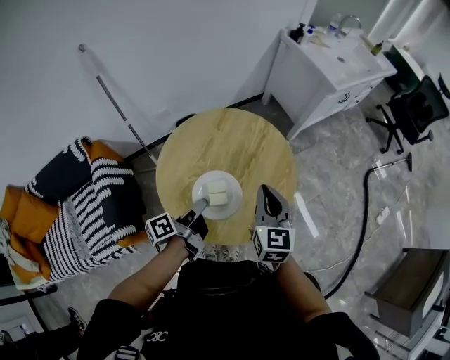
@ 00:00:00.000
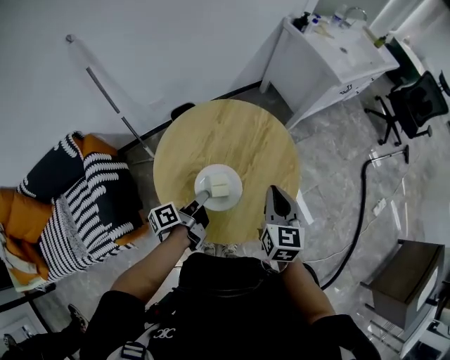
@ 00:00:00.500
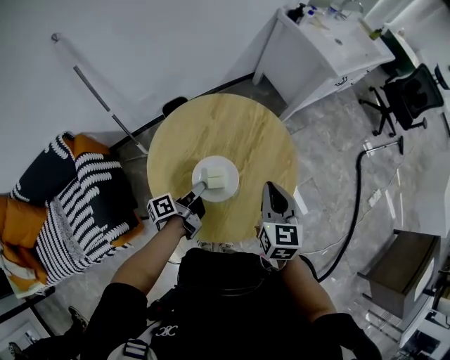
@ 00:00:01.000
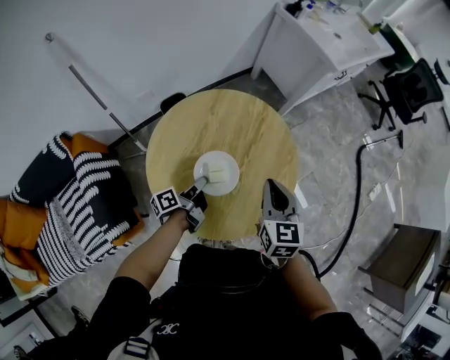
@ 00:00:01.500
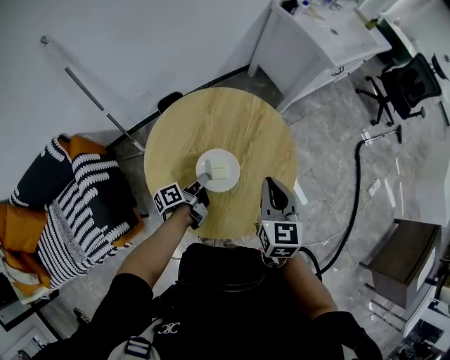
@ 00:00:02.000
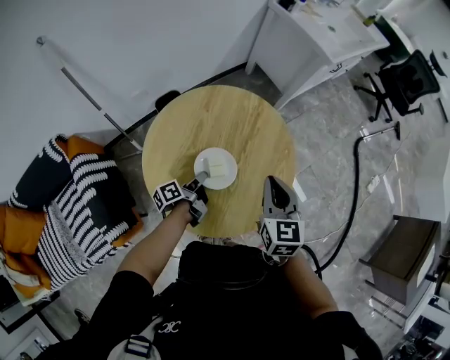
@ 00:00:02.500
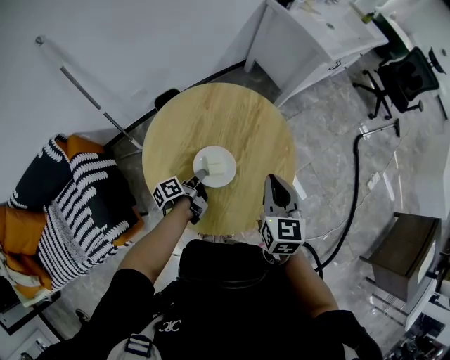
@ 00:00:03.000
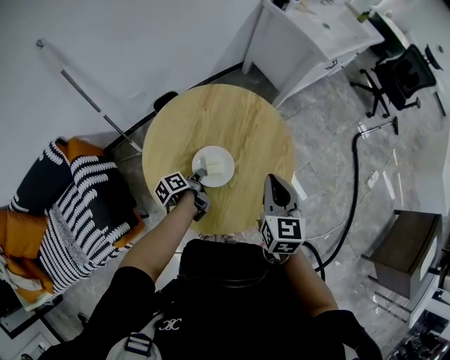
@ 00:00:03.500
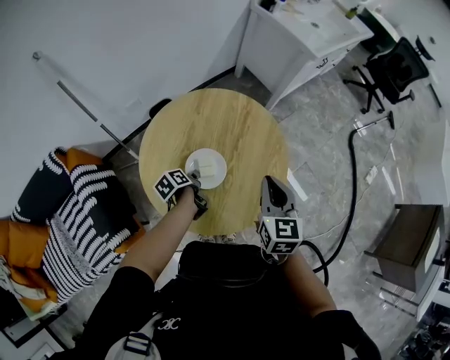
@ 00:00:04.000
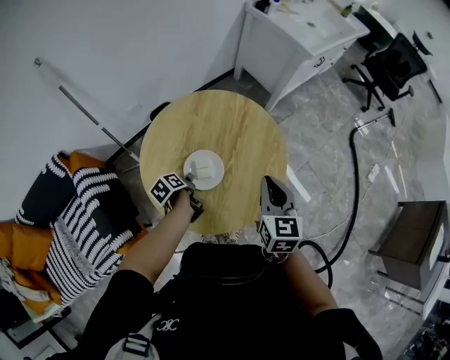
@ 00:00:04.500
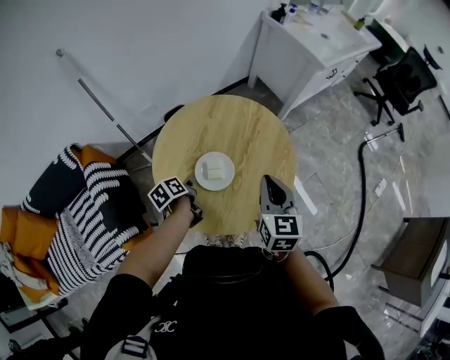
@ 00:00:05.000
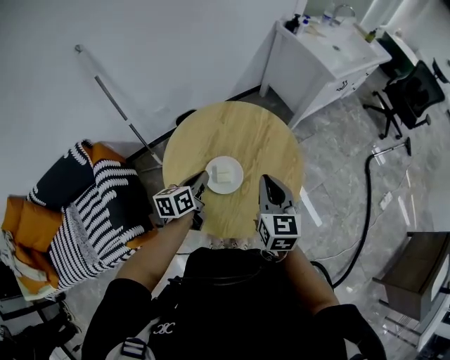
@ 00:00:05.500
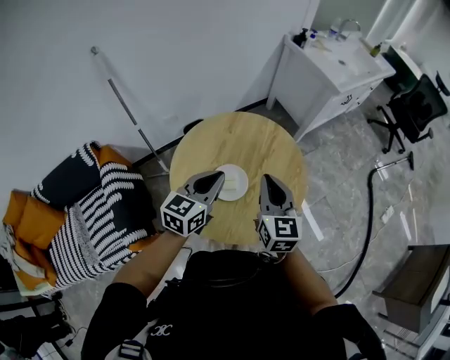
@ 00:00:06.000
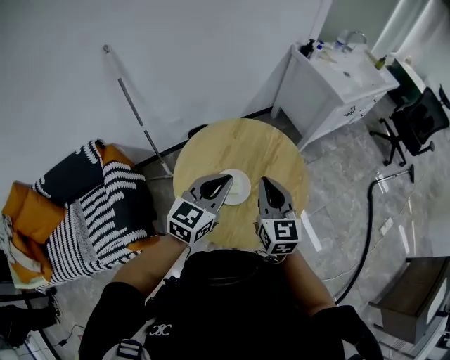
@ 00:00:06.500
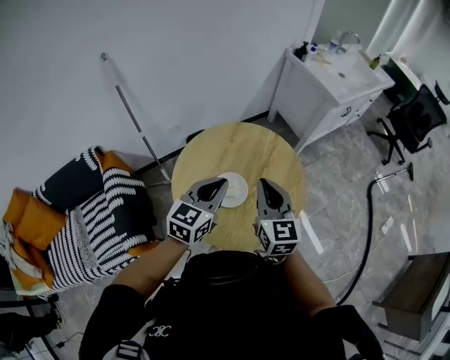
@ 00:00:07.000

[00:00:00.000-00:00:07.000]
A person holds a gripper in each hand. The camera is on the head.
00:00:05.000 to 00:00:07.000: The right gripper moves some 10 cm.

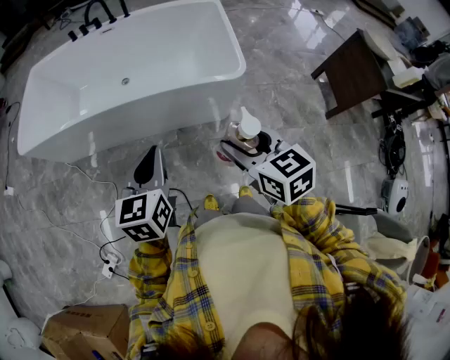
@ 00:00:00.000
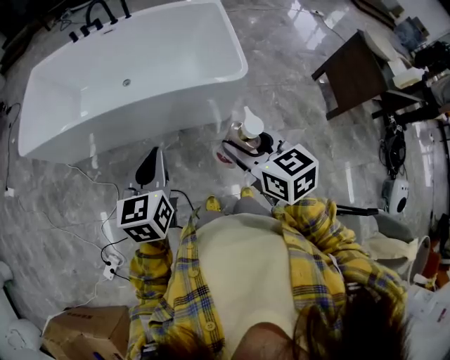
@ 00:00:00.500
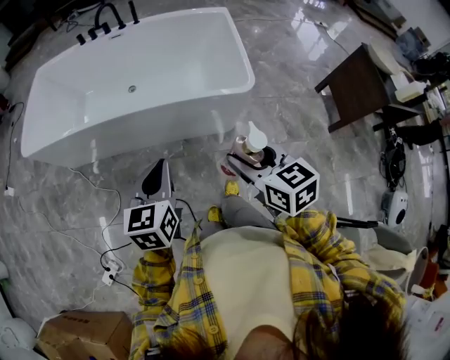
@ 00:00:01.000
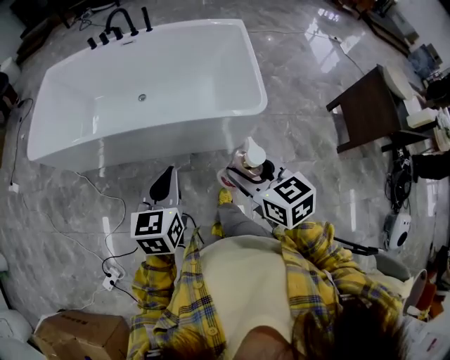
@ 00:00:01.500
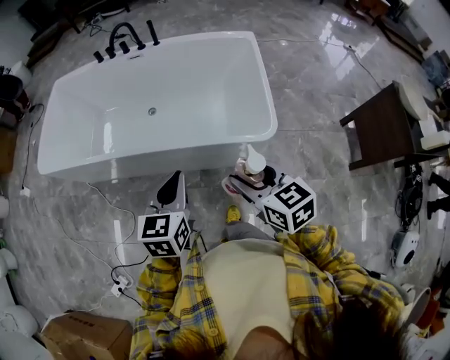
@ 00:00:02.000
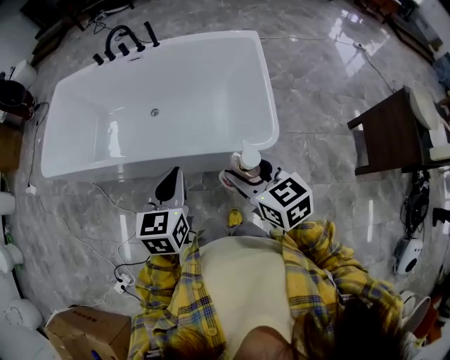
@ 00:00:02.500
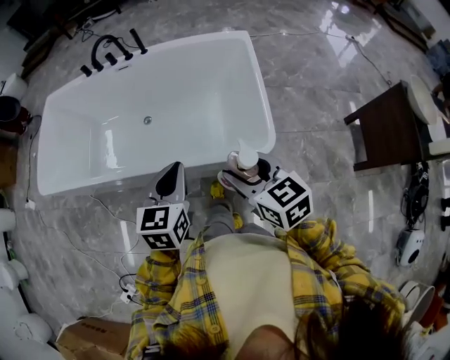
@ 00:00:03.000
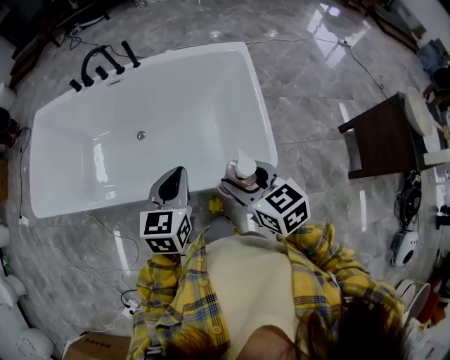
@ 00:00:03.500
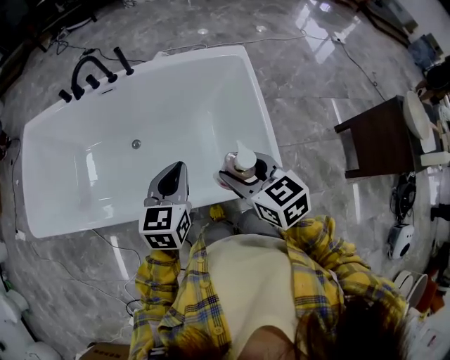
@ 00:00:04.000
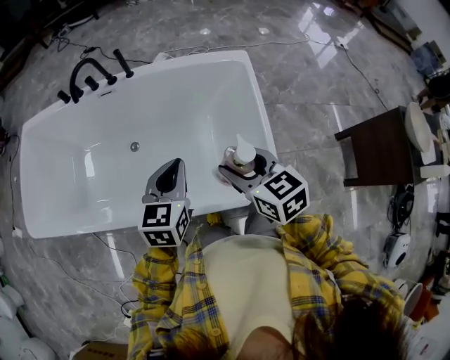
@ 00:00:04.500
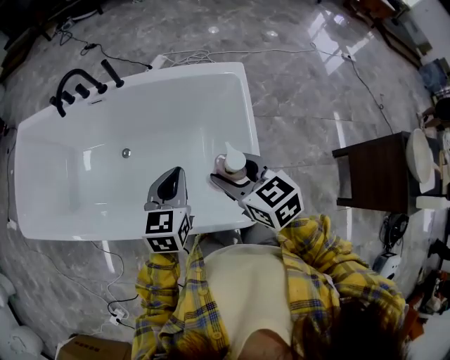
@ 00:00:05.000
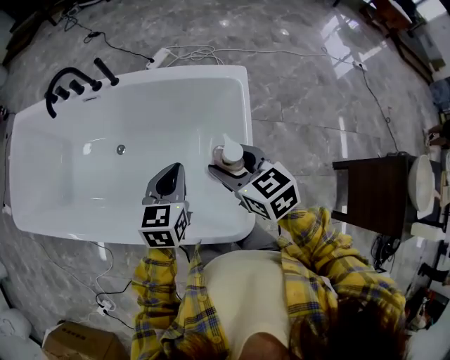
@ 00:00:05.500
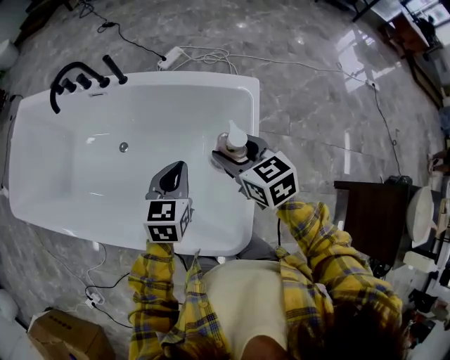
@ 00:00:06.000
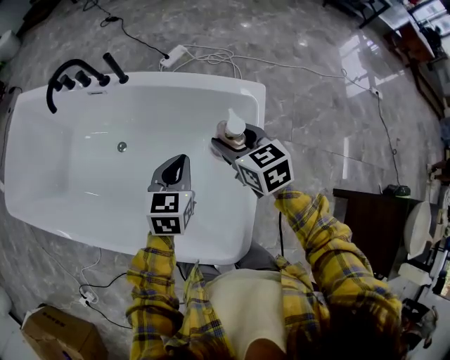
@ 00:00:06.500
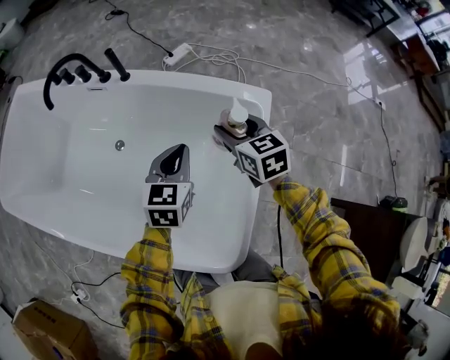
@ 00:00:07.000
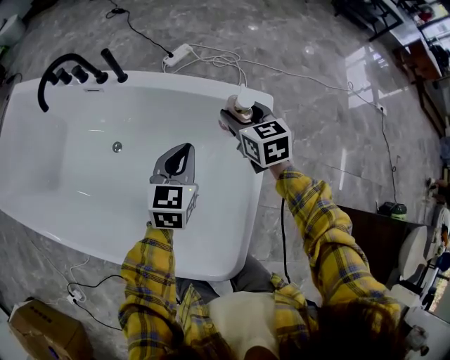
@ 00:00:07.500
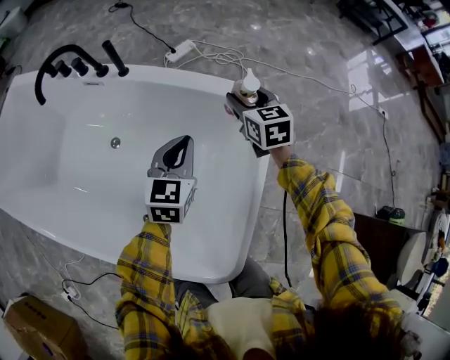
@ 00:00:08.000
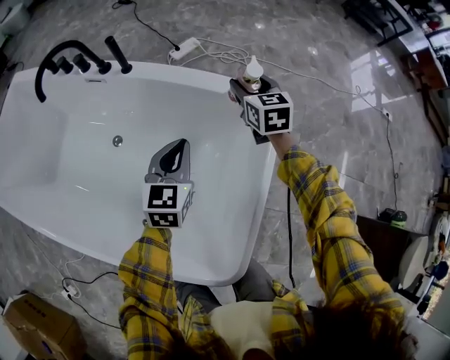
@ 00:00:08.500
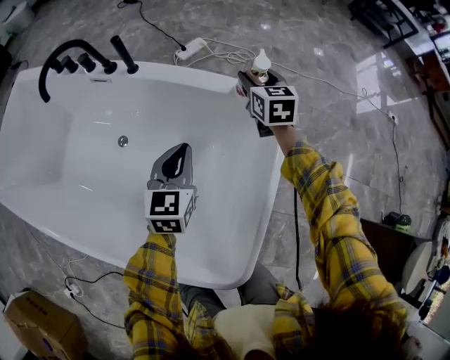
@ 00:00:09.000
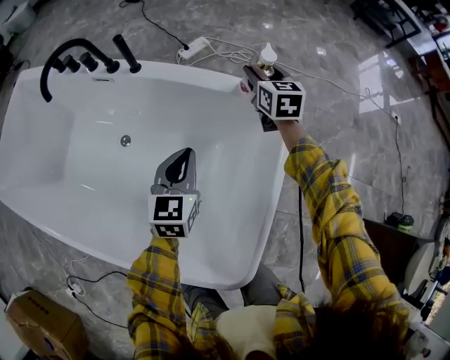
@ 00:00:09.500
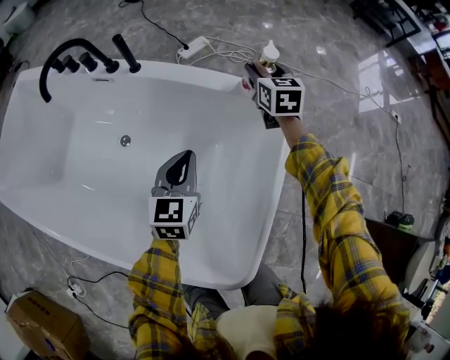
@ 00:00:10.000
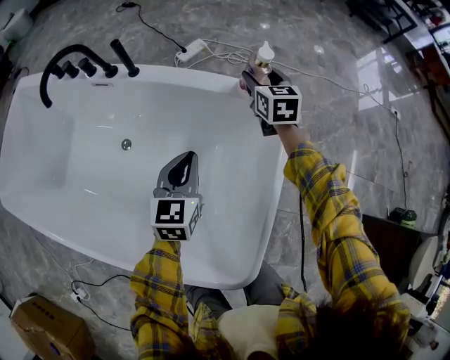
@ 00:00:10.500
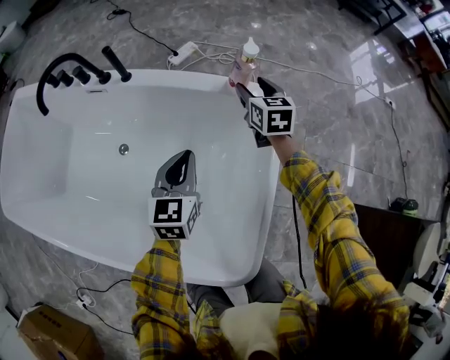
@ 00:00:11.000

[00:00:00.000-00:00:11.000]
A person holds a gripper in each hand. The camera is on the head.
00:00:00.000 to 00:00:02.000: The grippers both shift forward by roughly 15 cm.
00:00:02.000 to 00:00:03.500: The left gripper shifts some 20 cm forward and to the right. Meanwhile the right gripper shifts about 20 cm forward.
00:00:03.500 to 00:00:05.500: Both grippers travel together forward and to the right, approximately 25 cm.
00:00:05.500 to 00:00:07.500: The left gripper is displaced forward and downward by approximately 15 cm. The right gripper moves forward, roughly 25 cm.
00:00:07.500 to 00:00:09.000: The right gripper heads forward, covering about 10 cm, while the left gripper shifts by some 5 cm.
00:00:09.000 to 00:00:11.000: The grippers stay close to where they were, moving slightly.

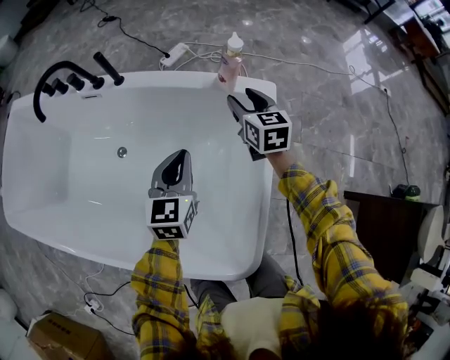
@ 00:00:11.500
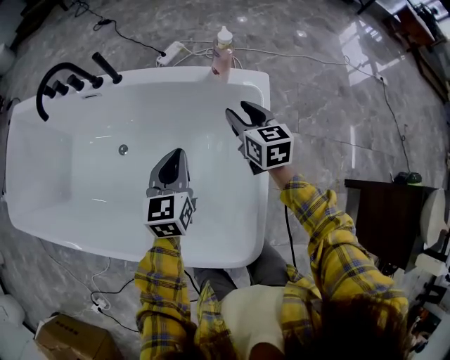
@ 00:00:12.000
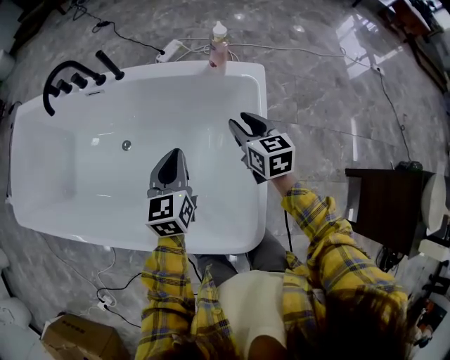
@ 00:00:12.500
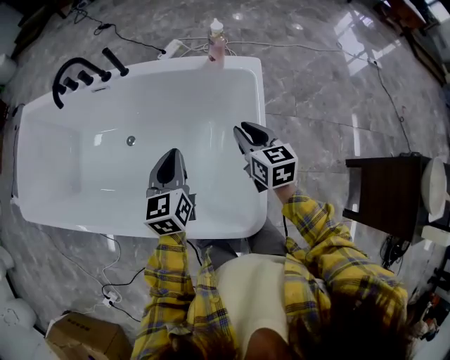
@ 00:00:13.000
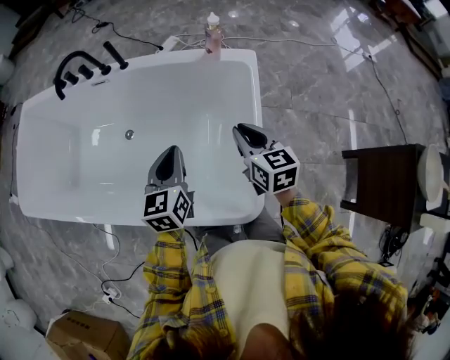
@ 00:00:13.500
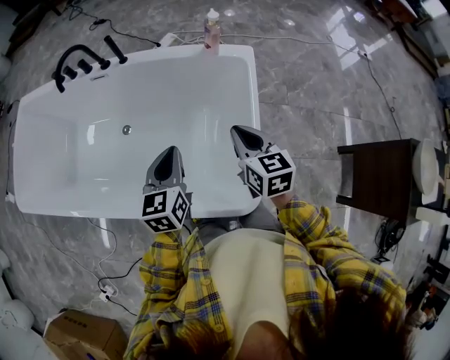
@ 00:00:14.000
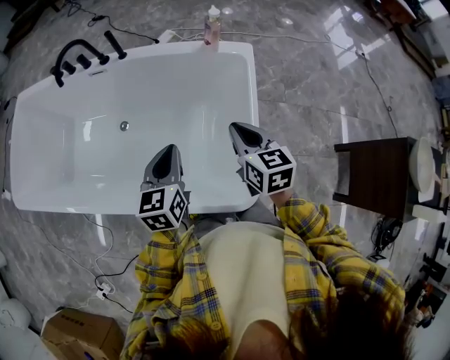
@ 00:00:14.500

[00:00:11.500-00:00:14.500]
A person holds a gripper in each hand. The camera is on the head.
00:00:11.500 to 00:00:13.000: The left gripper moves backward and upward, some 10 cm. The right gripper heads backward, covering approximately 20 cm, and closes its fingers.
00:00:13.000 to 00:00:14.500: The left gripper heads backward, covering approximately 5 cm. Meanwhile the right gripper moves backward and upward, some 10 cm.

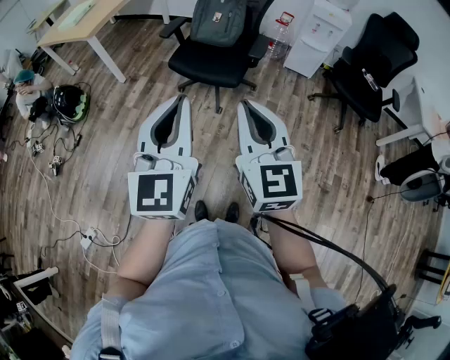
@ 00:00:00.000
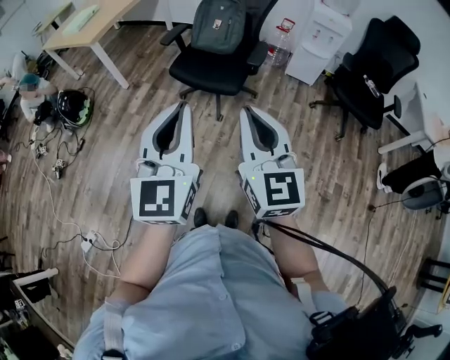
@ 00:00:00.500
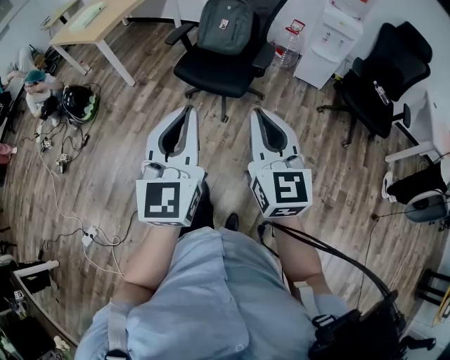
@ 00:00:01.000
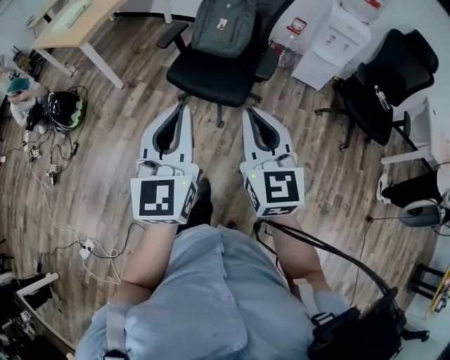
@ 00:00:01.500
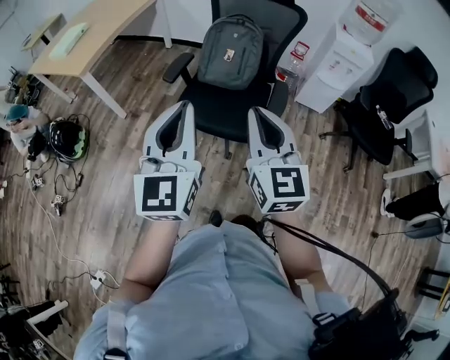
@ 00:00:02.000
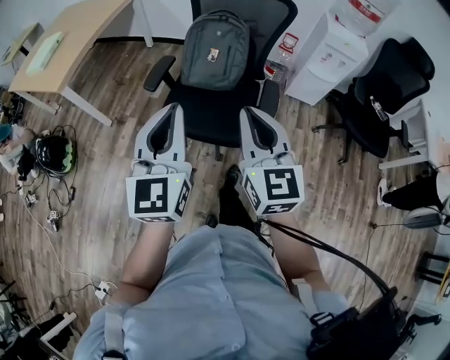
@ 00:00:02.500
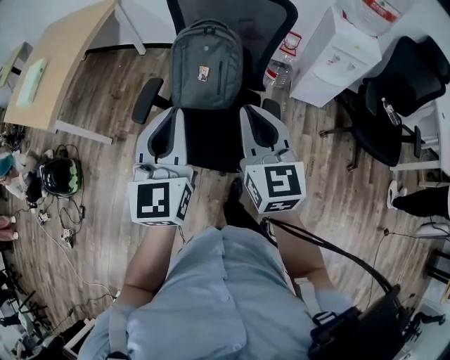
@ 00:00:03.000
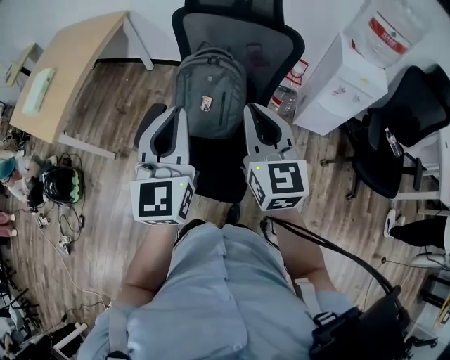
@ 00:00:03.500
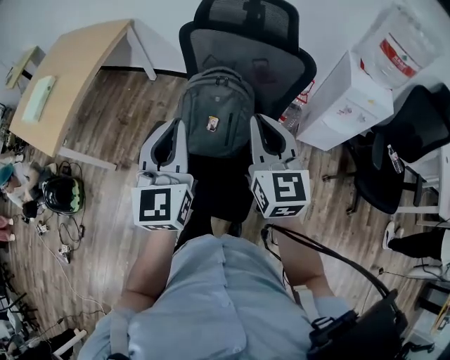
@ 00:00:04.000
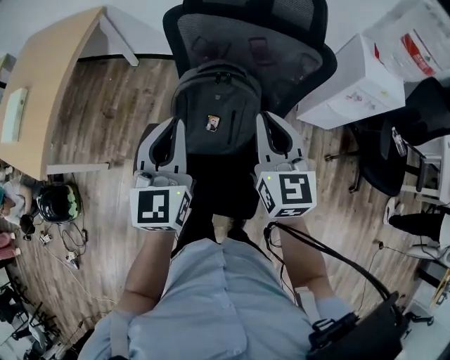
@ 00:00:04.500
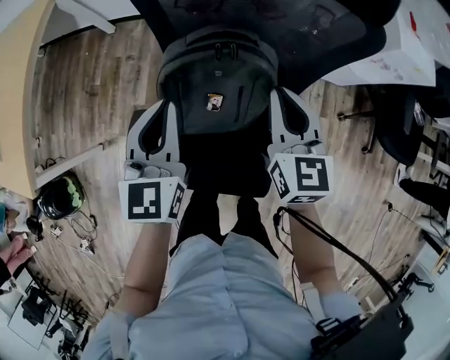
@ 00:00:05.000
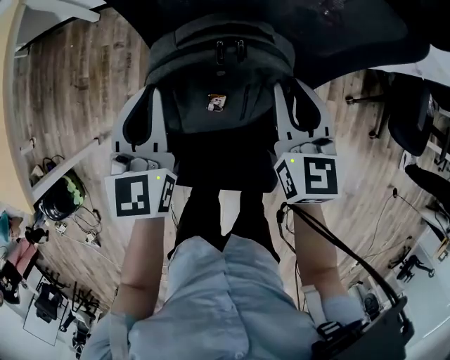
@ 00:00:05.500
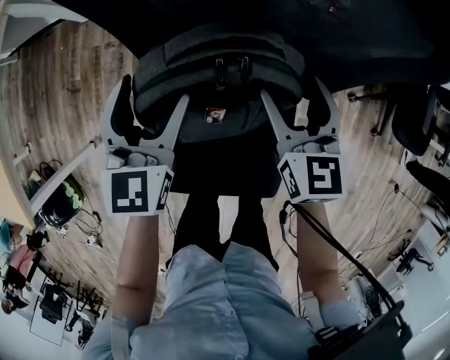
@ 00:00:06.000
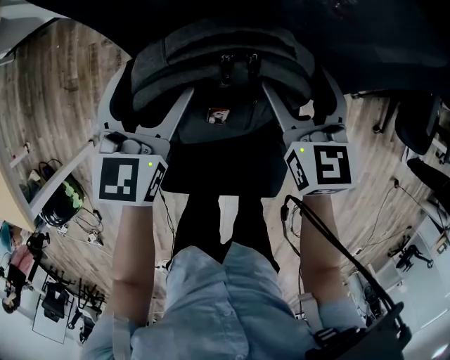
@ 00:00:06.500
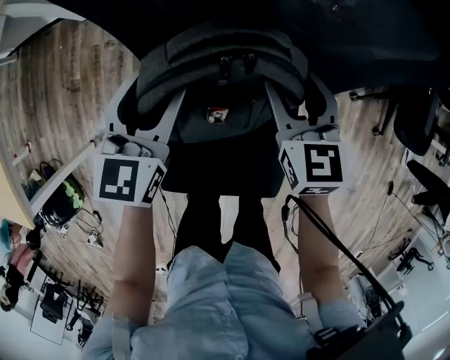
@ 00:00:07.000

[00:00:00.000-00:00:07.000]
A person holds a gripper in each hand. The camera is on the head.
00:00:00.000 to 00:00:02.000: The two grippers go approximately 25 cm forward.
00:00:02.000 to 00:00:03.500: Both grippers move forward, some 30 cm.
00:00:03.500 to 00:00:05.000: The two grippers go approximately 25 cm forward and downward. The left gripper changes its angle by approximately 20 degrees, while the right gripper changes its angle by approximately 20 degrees.
00:00:05.000 to 00:00:07.000: The left gripper goes approximately 10 cm downward and forward, and opens up. Meanwhile the right gripper goes some 10 cm downward, and opens its fingers.
